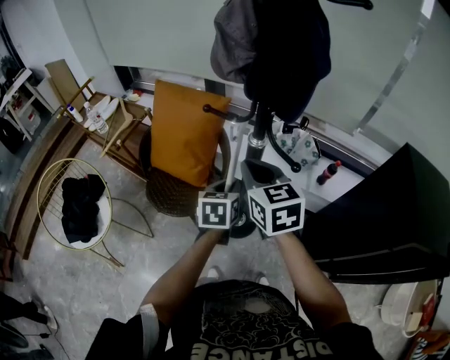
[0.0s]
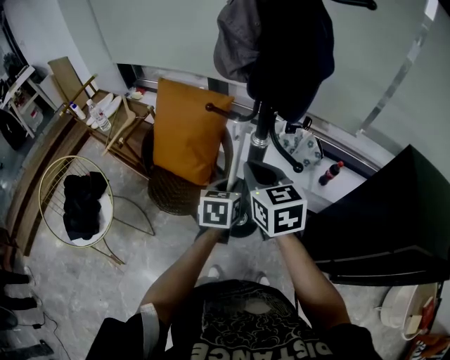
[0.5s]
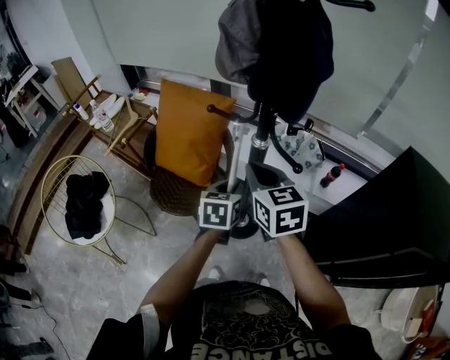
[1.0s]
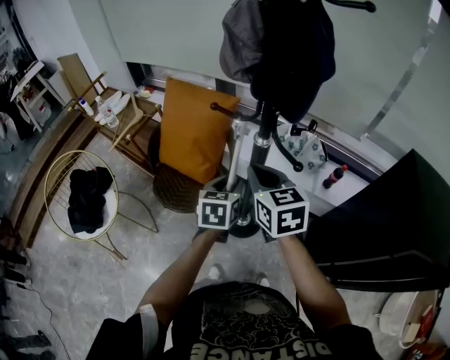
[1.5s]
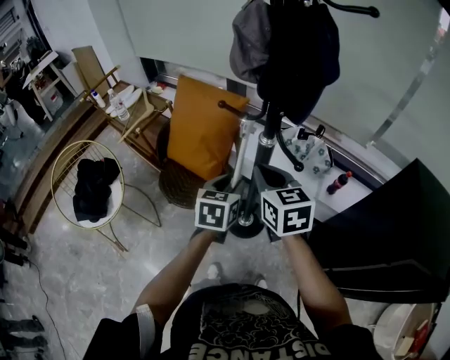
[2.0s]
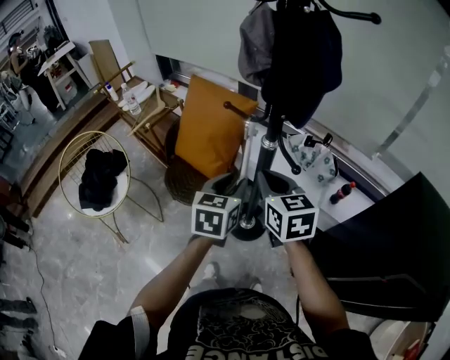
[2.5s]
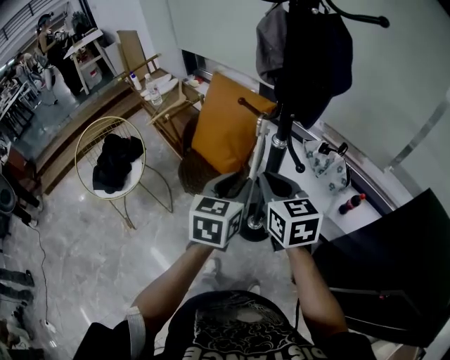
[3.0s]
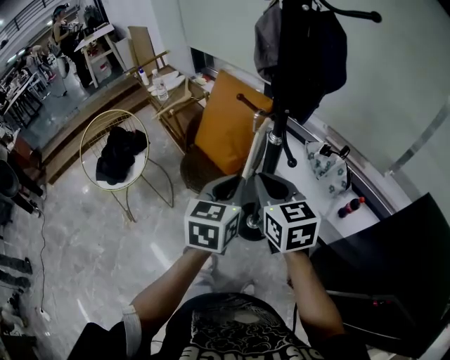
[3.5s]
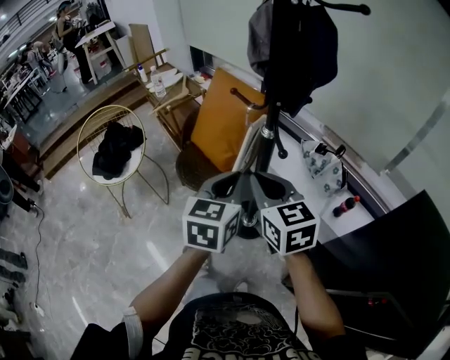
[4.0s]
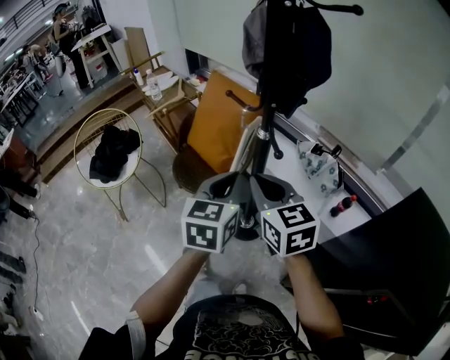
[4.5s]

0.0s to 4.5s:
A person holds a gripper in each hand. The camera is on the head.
0.0s to 2.0s: The grippers move only a little.
2.0s to 4.5s: The right gripper is displaced backward by about 10 cm, and rotates roughly 20 degrees; the left gripper shifts about 15 cm upward and backward, rotates approximately 20 degrees, and closes its fingers.

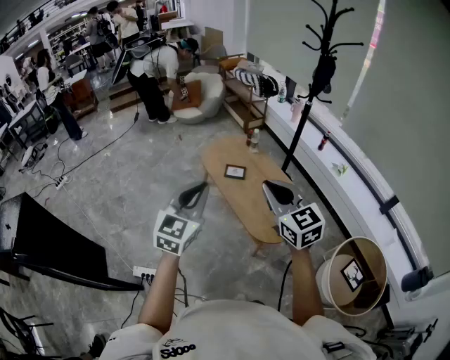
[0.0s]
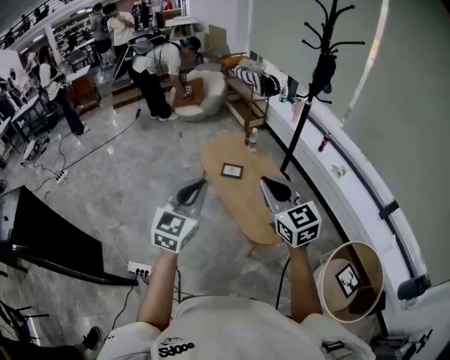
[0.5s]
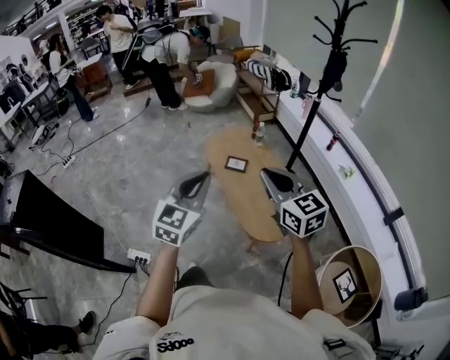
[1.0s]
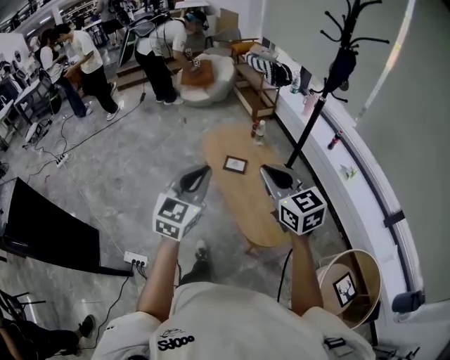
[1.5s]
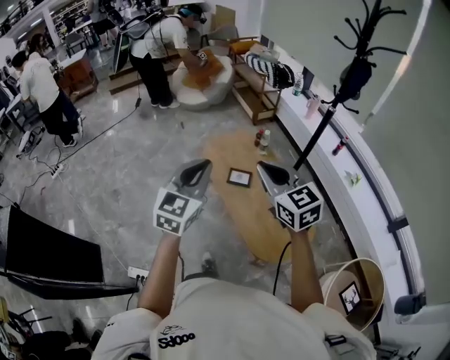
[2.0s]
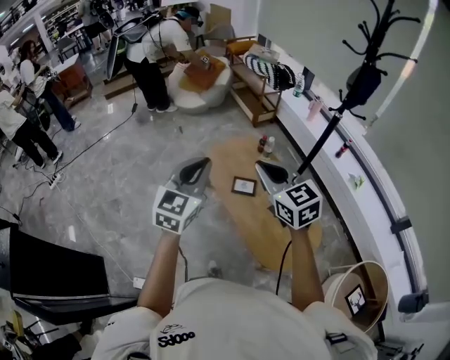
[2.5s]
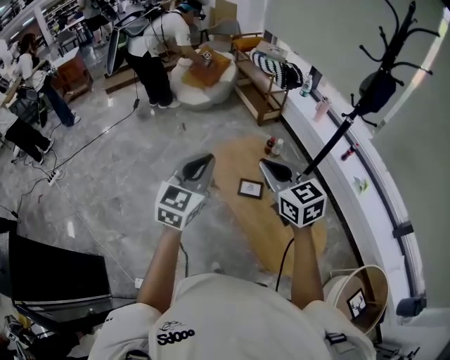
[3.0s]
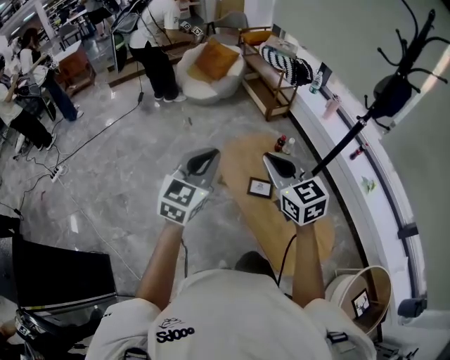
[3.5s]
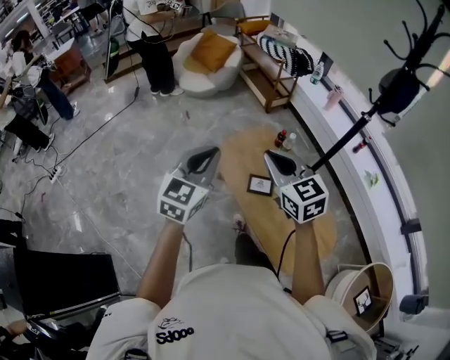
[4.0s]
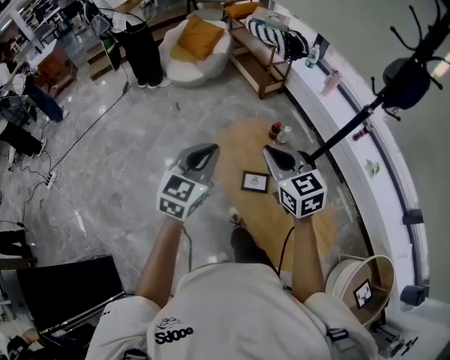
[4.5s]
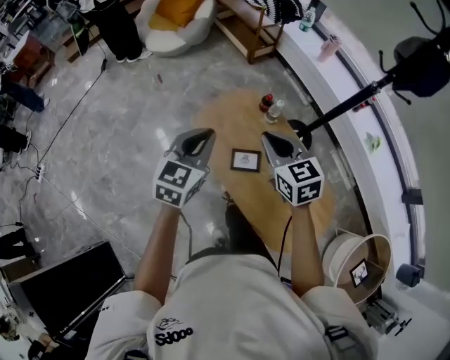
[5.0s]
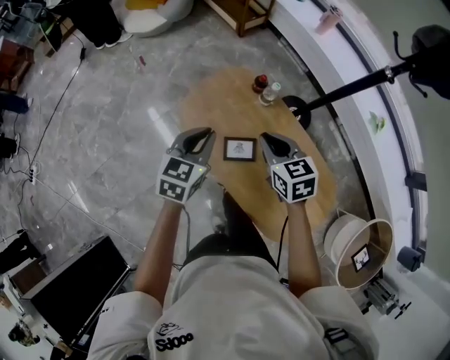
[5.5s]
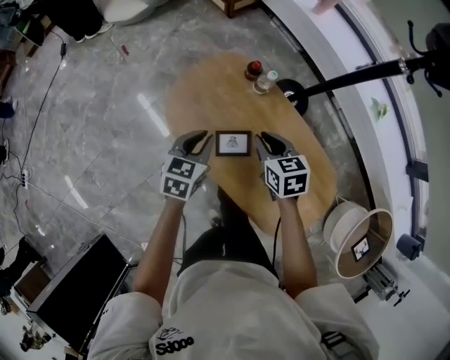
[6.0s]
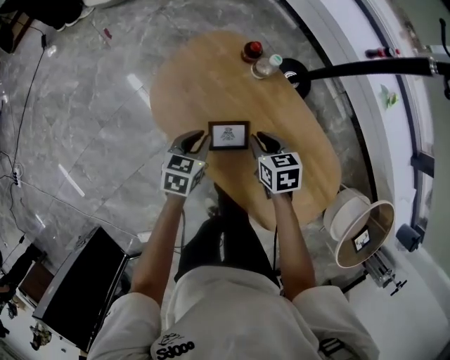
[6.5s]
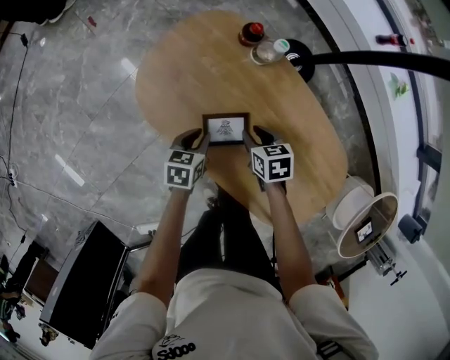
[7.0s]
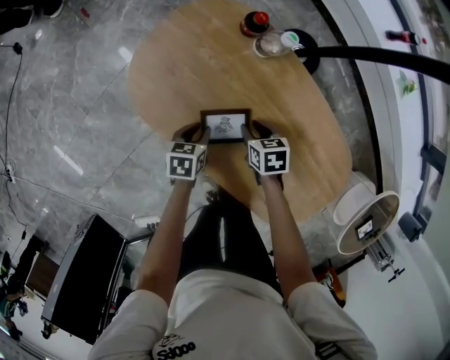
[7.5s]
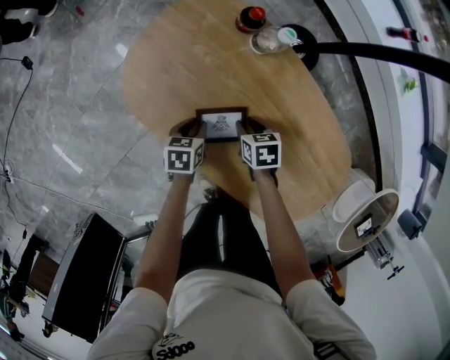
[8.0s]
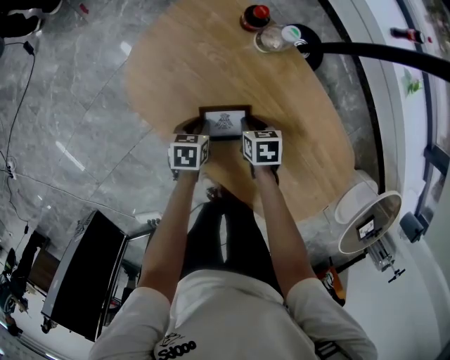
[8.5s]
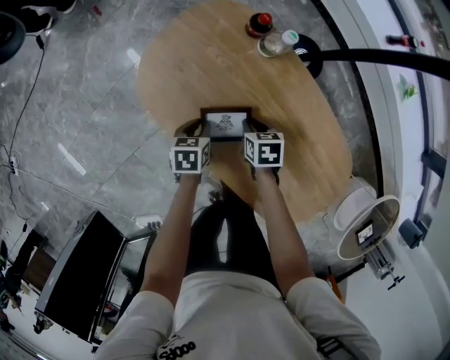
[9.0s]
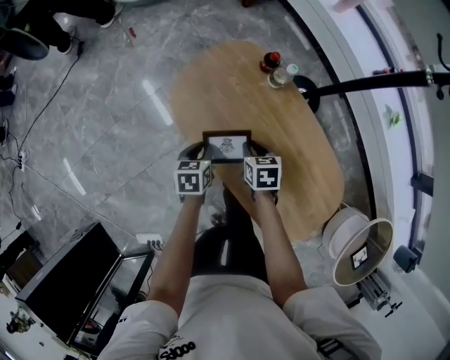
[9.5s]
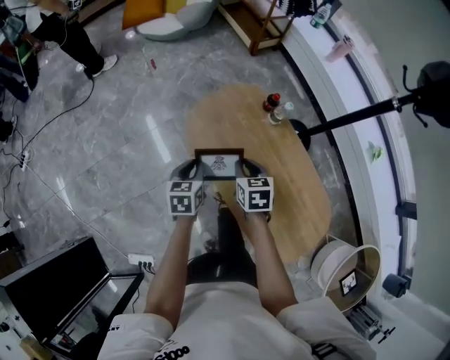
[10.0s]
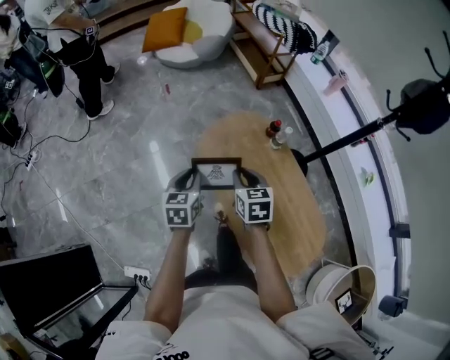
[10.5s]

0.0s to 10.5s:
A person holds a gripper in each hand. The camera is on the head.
0.0s to 2.0s: Both grippers move forward, roughly 25 cm.
2.0s to 4.0s: The right gripper moves forward and to the left, some 25 cm, while the left gripper moves forward, some 20 cm.
4.0s to 6.5s: The left gripper shifts about 50 cm downward and forward, and tips its fingers downward by some 30 degrees. Meanwhile the right gripper heads downward, covering roughly 50 cm, and tips its fingers downward by approximately 40 degrees.
6.5s to 8.5s: The grippers both shift downward by about 20 cm. The left gripper rotates about 20 degrees.
8.5s to 10.5s: The two grippers go about 40 cm upward and to the left. The right gripper turns by approximately 40 degrees; the left gripper turns by about 40 degrees.

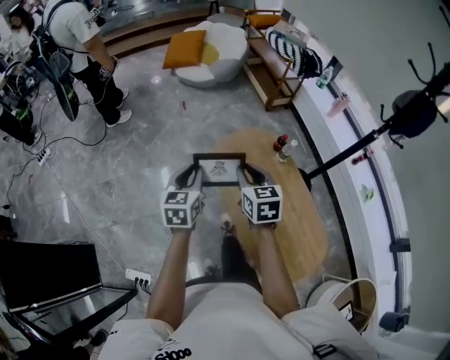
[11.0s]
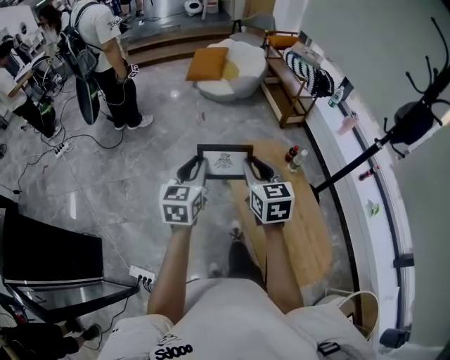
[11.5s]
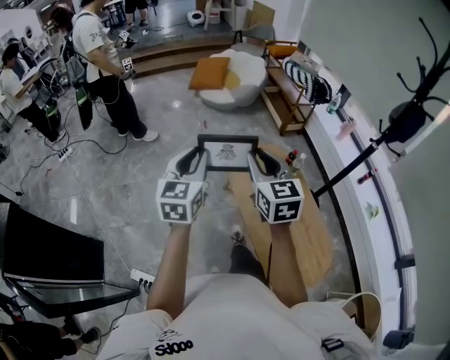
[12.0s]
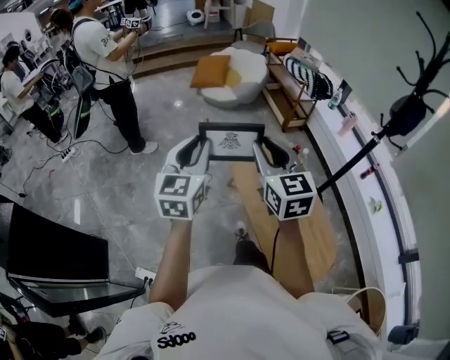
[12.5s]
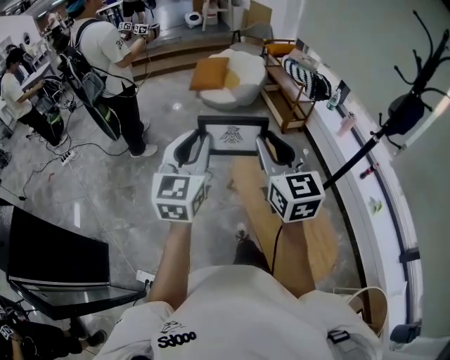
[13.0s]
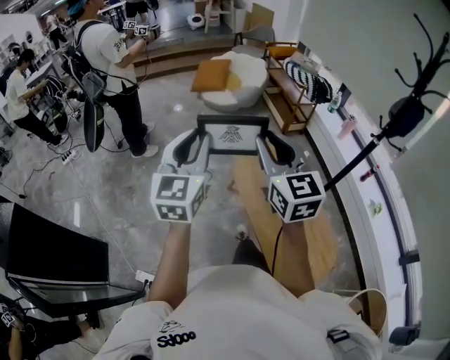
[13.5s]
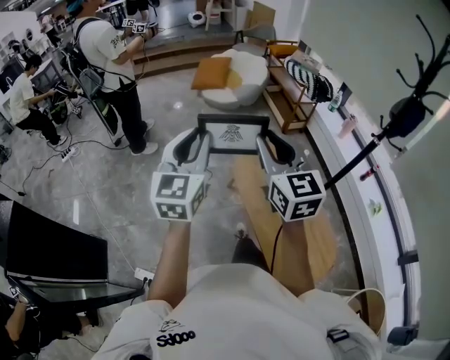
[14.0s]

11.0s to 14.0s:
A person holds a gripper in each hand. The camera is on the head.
11.0s to 12.5s: The two grippers go some 25 cm upward and backward. The left gripper swivels about 20 degrees; the right gripper swivels about 30 degrees.
12.5s to 14.0s: The grippers move only a little.

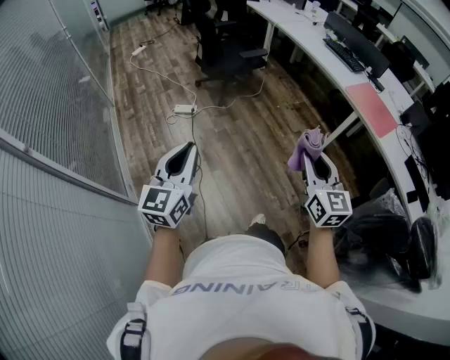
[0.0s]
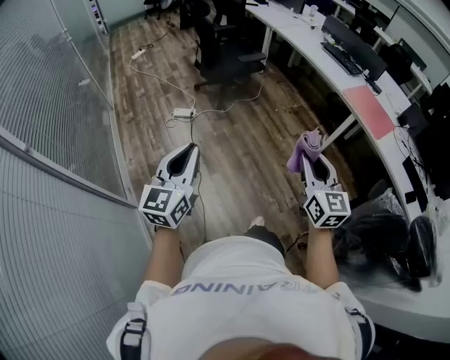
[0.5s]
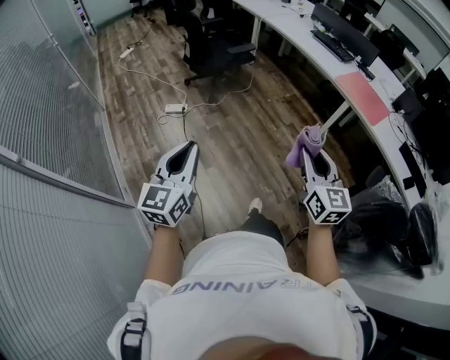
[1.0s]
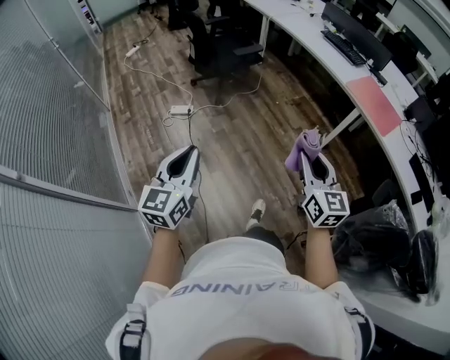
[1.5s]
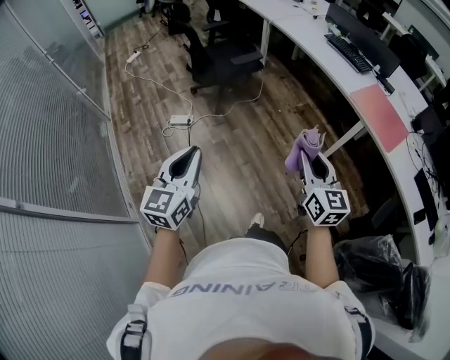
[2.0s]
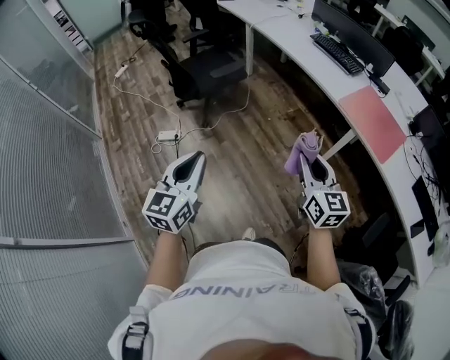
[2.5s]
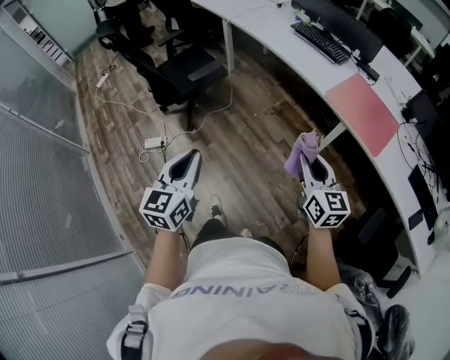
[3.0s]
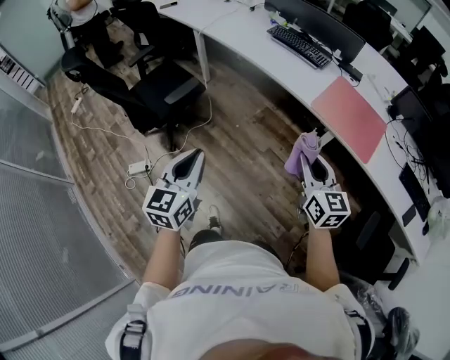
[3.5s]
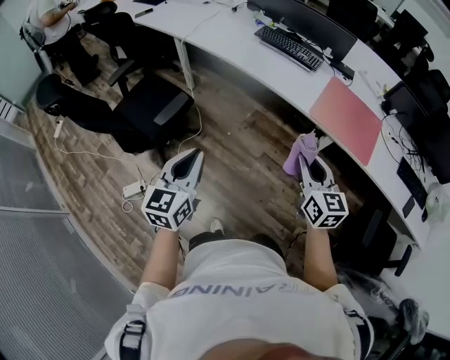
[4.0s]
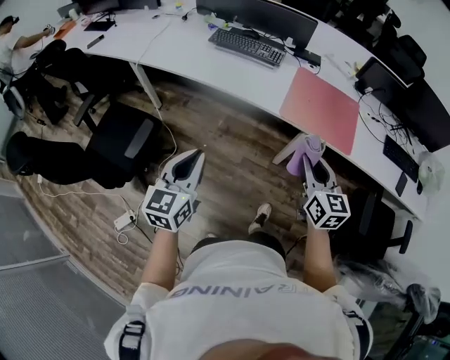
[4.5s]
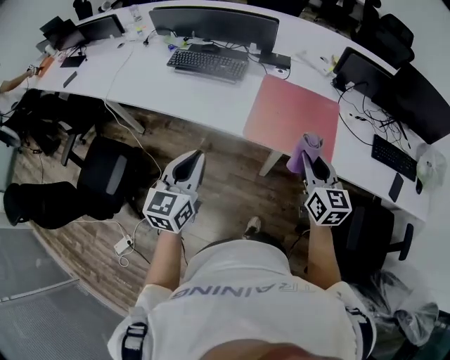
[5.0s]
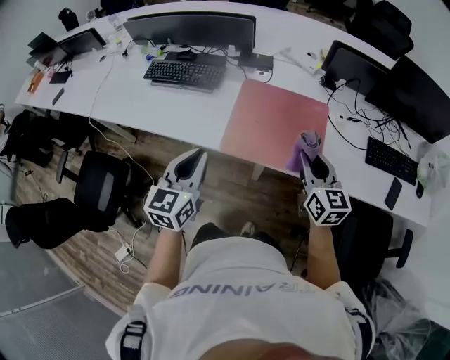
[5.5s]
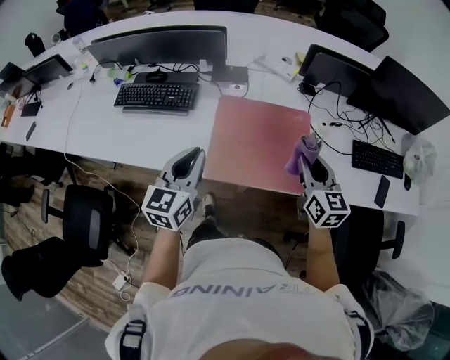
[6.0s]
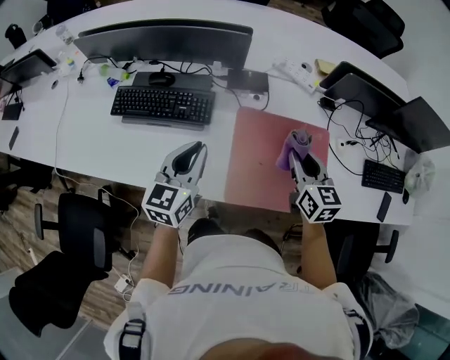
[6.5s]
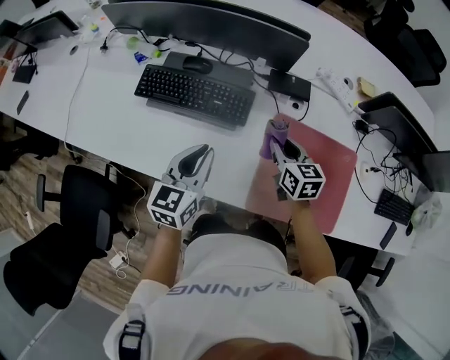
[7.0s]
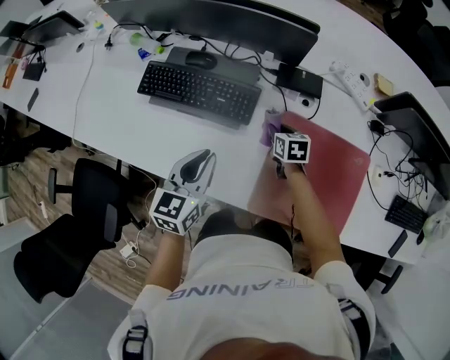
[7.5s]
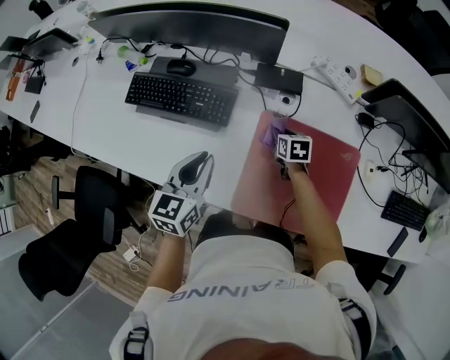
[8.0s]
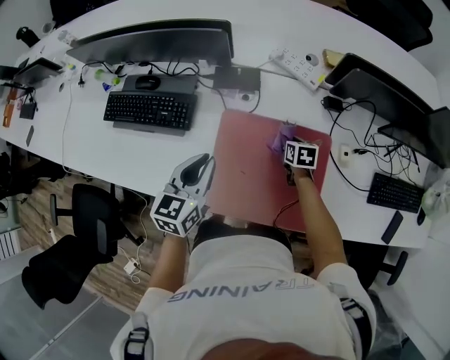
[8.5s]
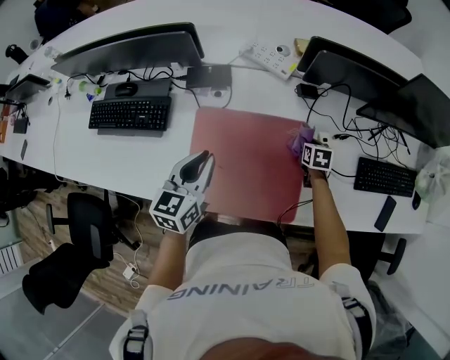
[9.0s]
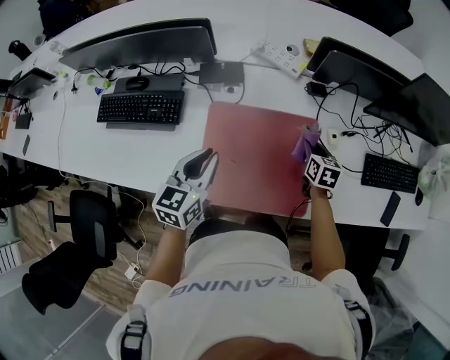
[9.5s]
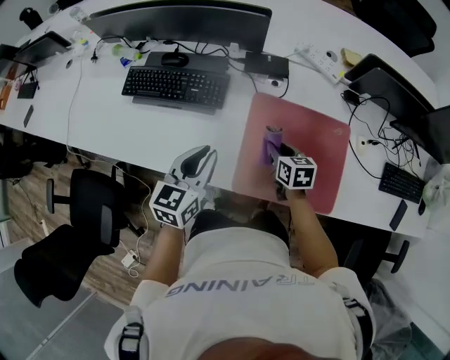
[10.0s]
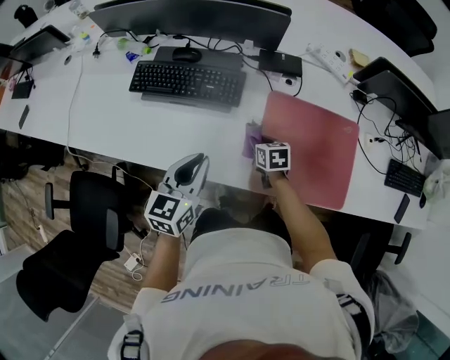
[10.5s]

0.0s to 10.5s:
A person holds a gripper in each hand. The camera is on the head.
0.0s to 2.0s: Both grippers travel together forward and to the right, roughly 20 cm.
2.0s to 4.0s: The left gripper changes place by approximately 50 cm, and rotates about 30 degrees, while the right gripper changes place by about 40 cm, and rotates some 30 degrees.
4.0s to 6.5s: The pair of grippers is taken roughly 60 cm. The left gripper rotates roughly 30 degrees; the right gripper turns by roughly 30 degrees.
6.5s to 8.5s: The left gripper moves to the right, some 15 cm, while the right gripper travels downward, forward and to the right by approximately 30 cm, and points its fingers approximately 30 degrees further downward.
8.5s to 10.5s: The two grippers go some 25 cm to the left and backward.
